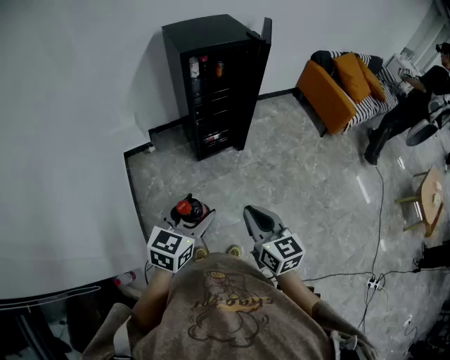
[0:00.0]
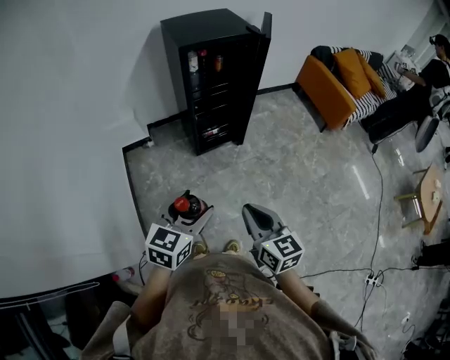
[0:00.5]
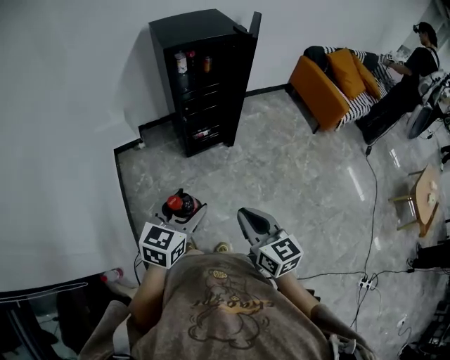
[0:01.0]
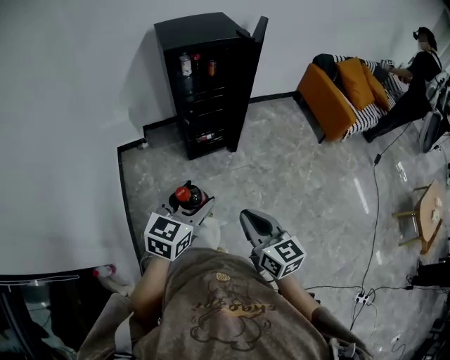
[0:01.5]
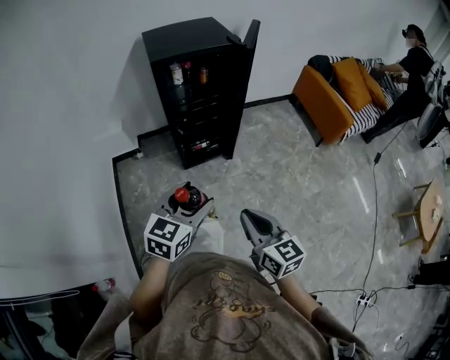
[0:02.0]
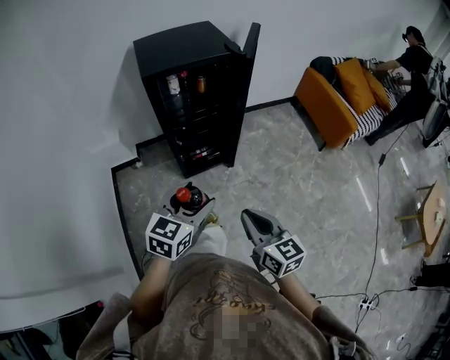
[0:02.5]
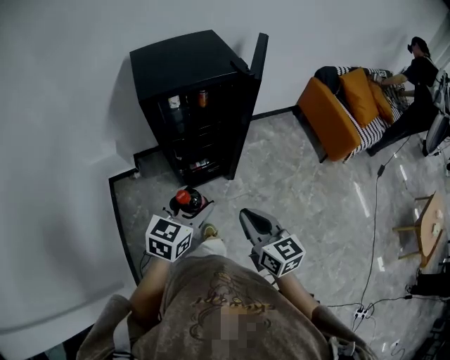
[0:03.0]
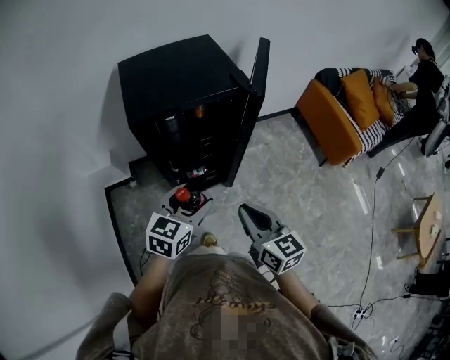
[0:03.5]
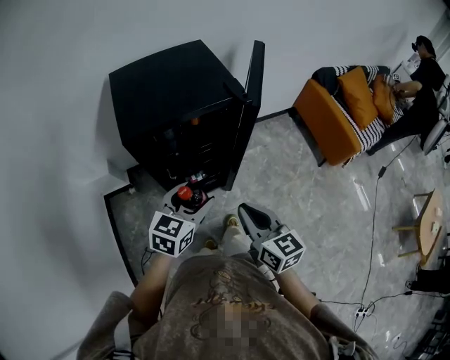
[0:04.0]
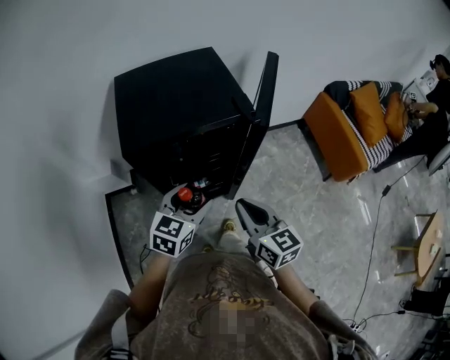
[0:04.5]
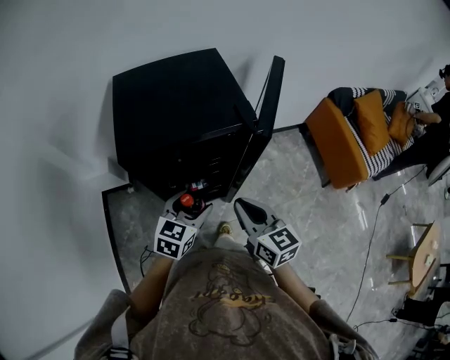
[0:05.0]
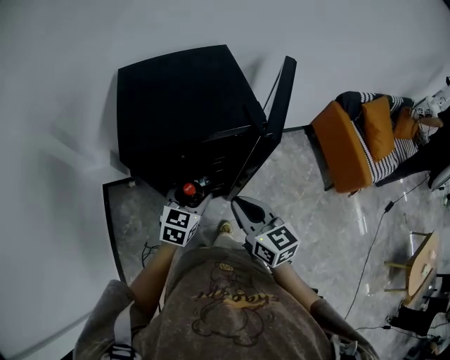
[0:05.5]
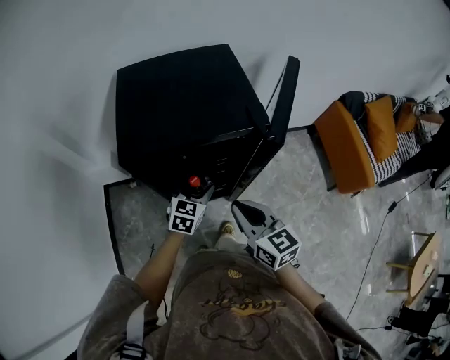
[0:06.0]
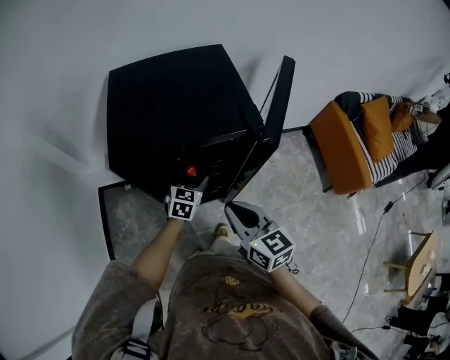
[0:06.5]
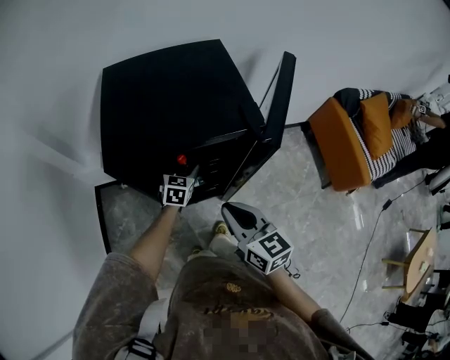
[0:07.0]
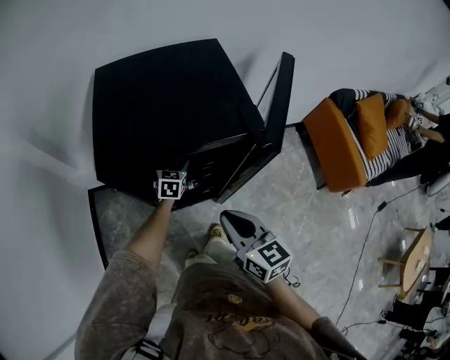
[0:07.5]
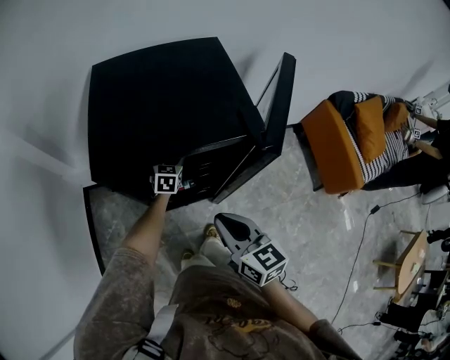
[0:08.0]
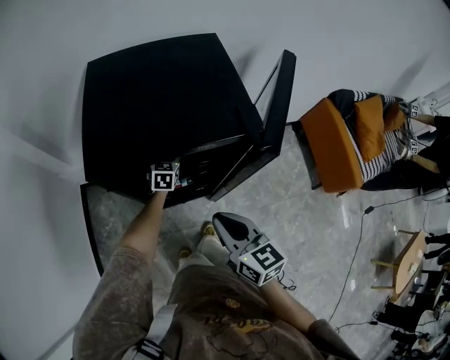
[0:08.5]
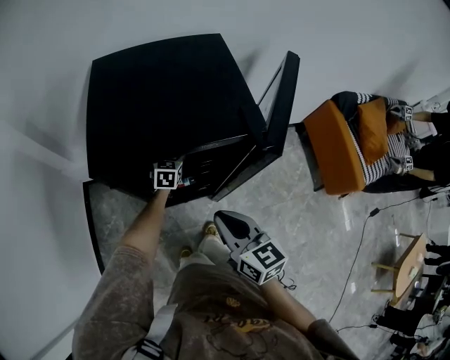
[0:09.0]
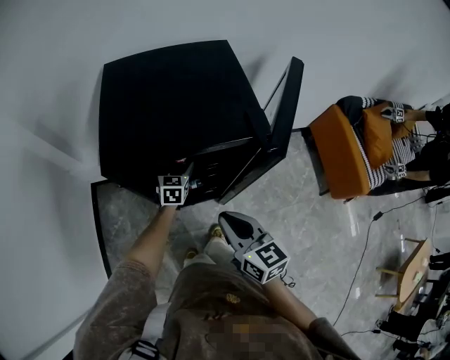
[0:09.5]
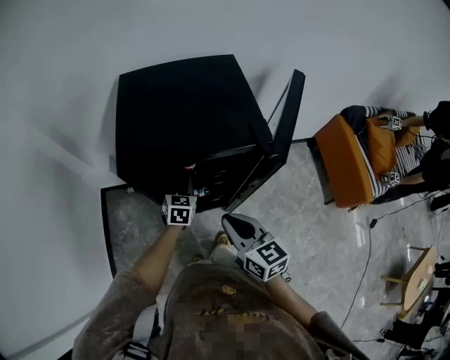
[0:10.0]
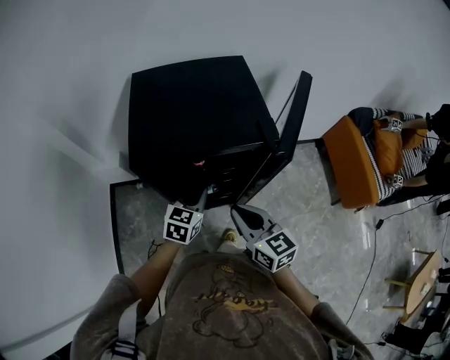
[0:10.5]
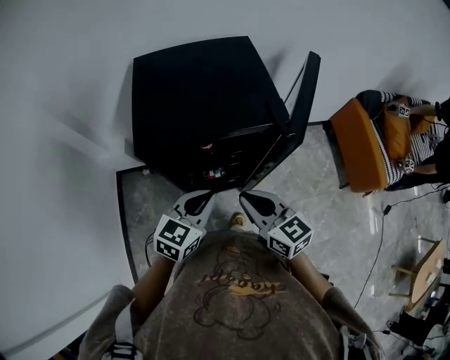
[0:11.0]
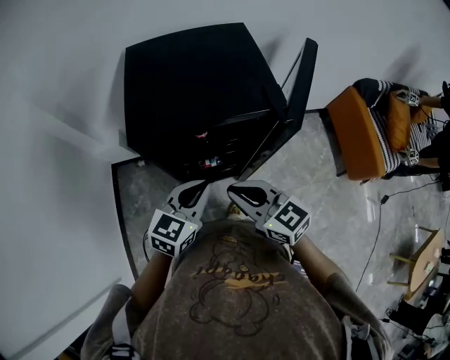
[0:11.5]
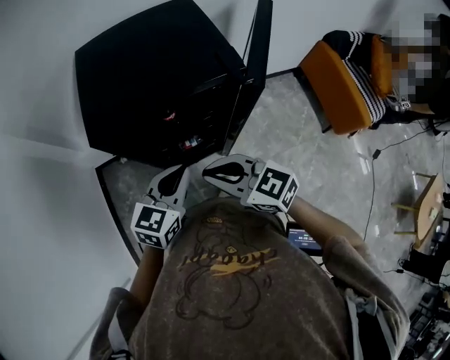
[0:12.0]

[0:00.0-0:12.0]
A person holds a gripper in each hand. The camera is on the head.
0:00.0 to 0:02.0: Both grippers move to the right and forward, about 15 cm.
0:02.0 to 0:04.0: The two grippers go roughly 35 cm forward.
0:04.0 to 0:06.0: The right gripper is displaced forward by about 15 cm; the left gripper heads forward and downward, covering roughly 20 cm.
0:06.0 to 0:08.0: The left gripper shifts approximately 20 cm forward and downward.
0:08.0 to 0:10.0: The left gripper travels backward by approximately 10 cm, and closes its fingers.
0:10.0 to 0:12.0: The left gripper heads upward and backward, covering about 25 cm, and rotates roughly 30 degrees, while the right gripper changes place by some 5 cm, and swivels about 30 degrees.

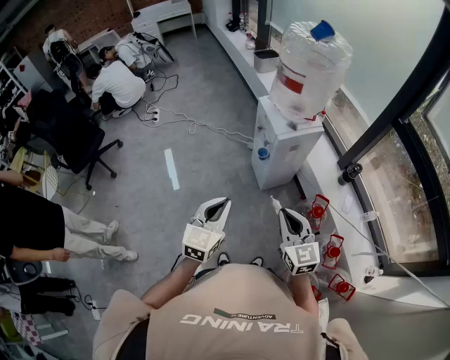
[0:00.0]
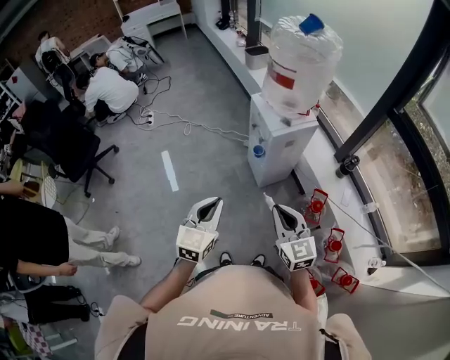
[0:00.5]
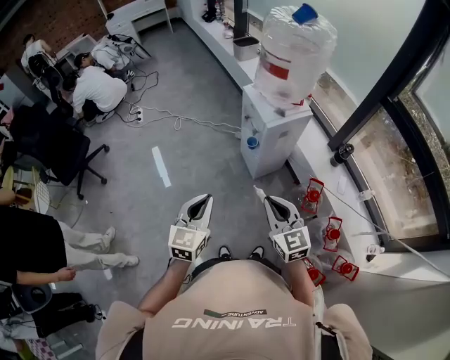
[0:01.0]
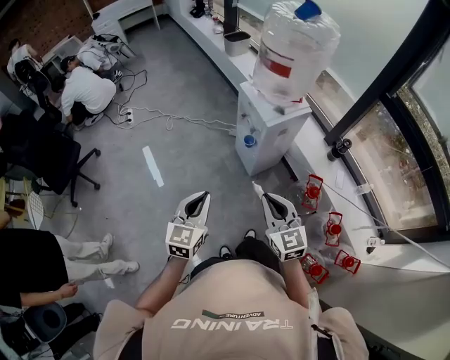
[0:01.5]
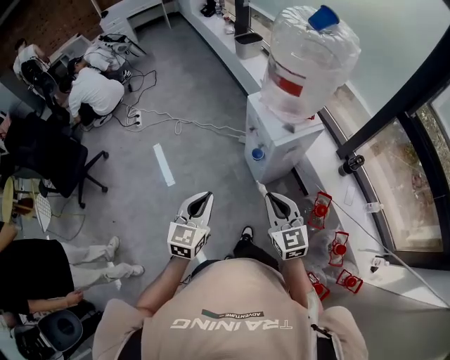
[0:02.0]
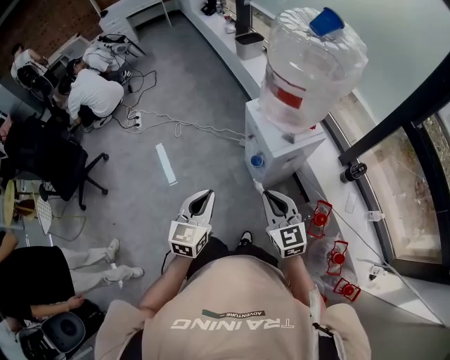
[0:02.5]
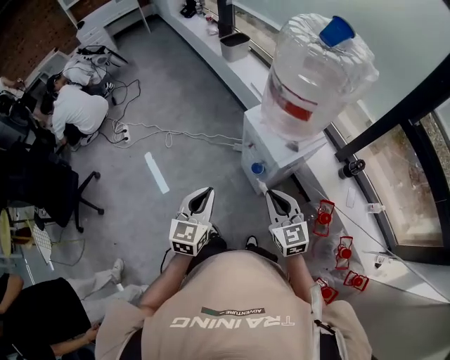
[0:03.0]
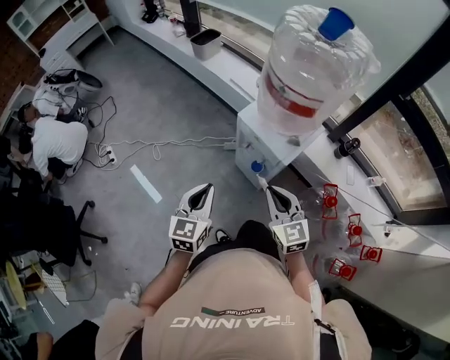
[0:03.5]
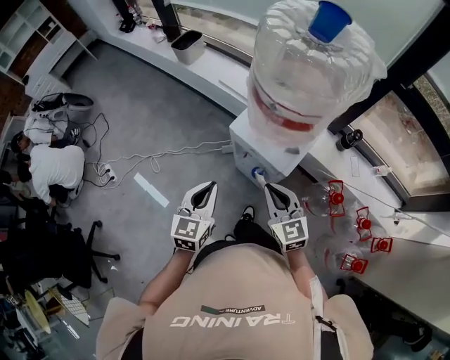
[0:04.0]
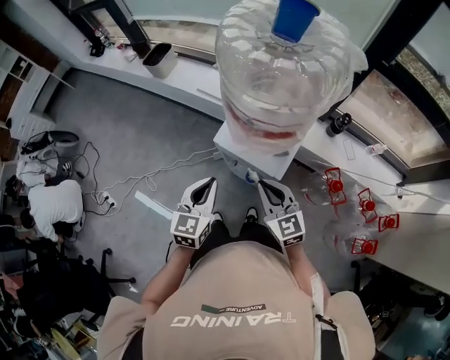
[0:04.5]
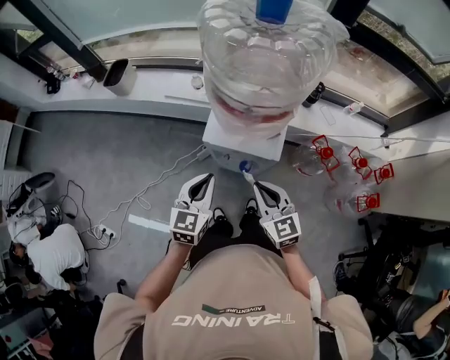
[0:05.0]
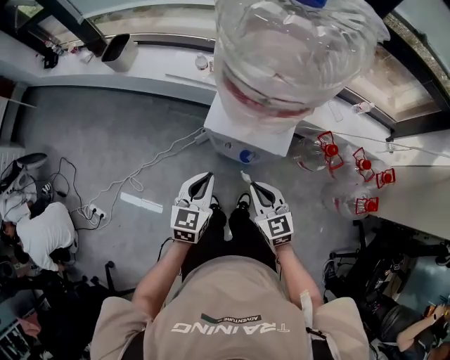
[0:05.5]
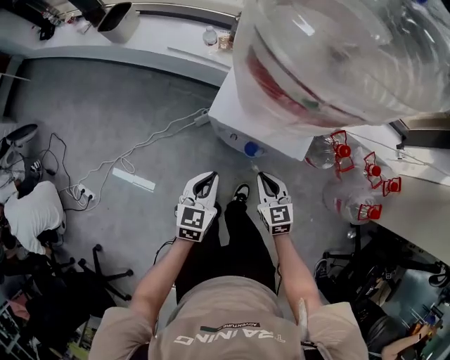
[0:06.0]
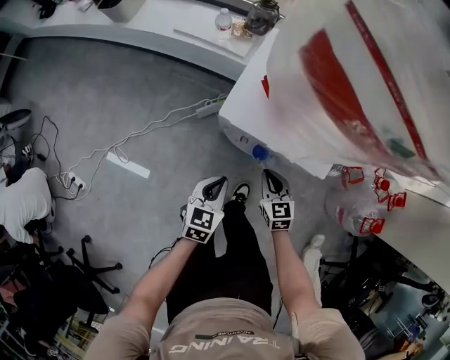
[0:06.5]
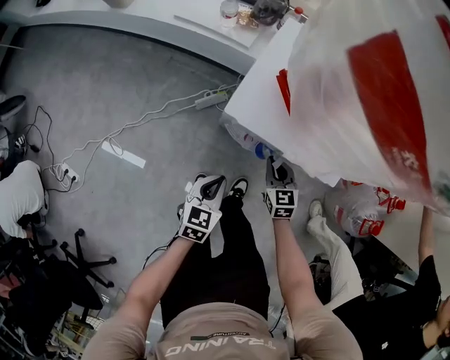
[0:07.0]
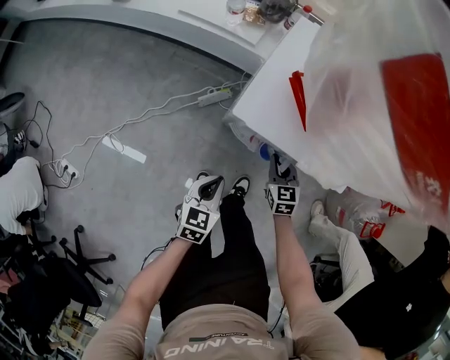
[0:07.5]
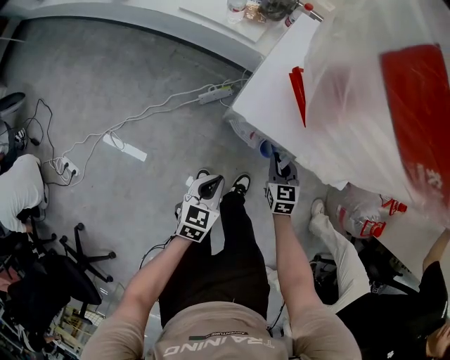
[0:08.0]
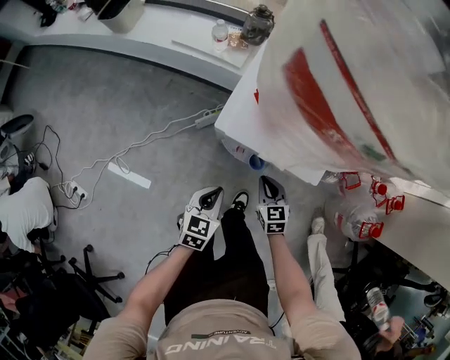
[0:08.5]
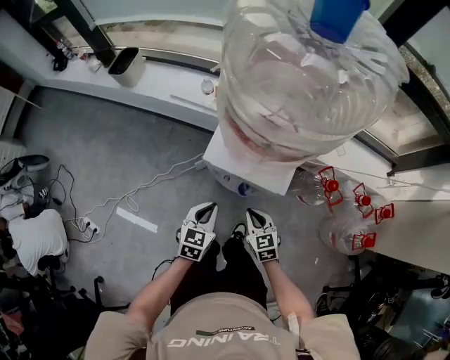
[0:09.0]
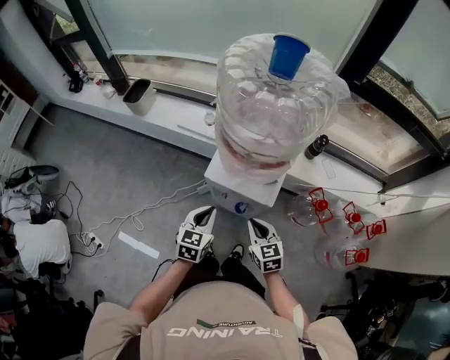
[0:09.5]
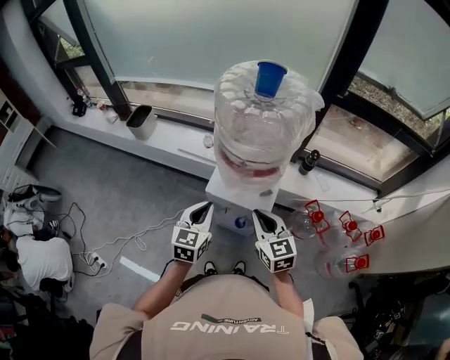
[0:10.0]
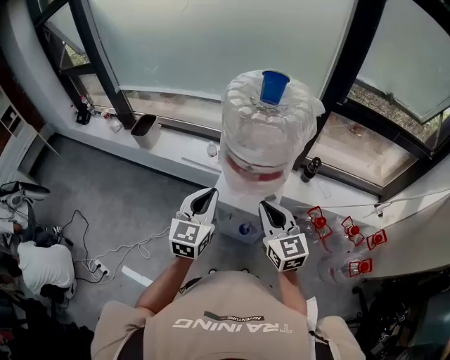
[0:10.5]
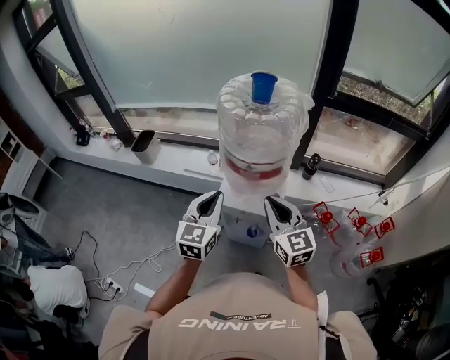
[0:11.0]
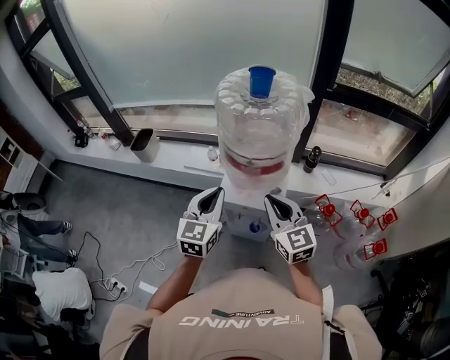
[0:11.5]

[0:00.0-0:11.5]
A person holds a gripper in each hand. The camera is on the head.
0:00.0 to 0:02.0: The two grippers go about 15 cm forward.
0:02.0 to 0:04.0: The left gripper ends up about 30 cm from where it was, and turns by some 20 degrees, while the right gripper shifts by roughly 25 cm, and changes its angle by some 20 degrees.
0:04.0 to 0:06.0: The grippers both shift downward by approximately 20 cm. The left gripper swivels some 20 degrees. Meanwhile the right gripper turns by some 30 degrees.
0:06.0 to 0:07.5: The left gripper moves downward, approximately 15 cm. Meanwhile the right gripper moves downward and forward, roughly 20 cm.
0:07.5 to 0:09.5: Both grippers move upward, roughly 30 cm.
0:09.5 to 0:11.5: The two grippers go some 20 cm upward. The left gripper swivels approximately 20 degrees. The right gripper swivels some 30 degrees.

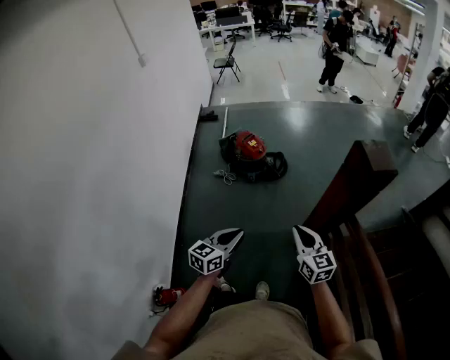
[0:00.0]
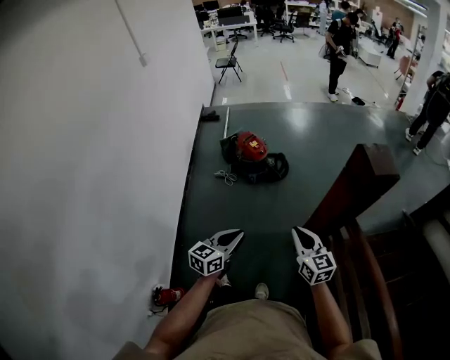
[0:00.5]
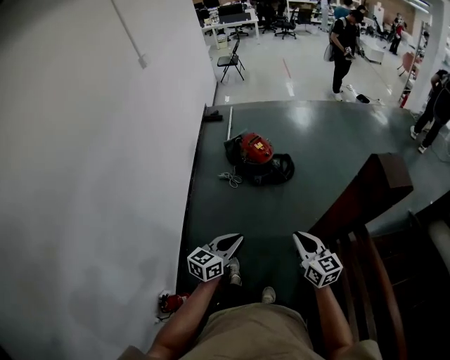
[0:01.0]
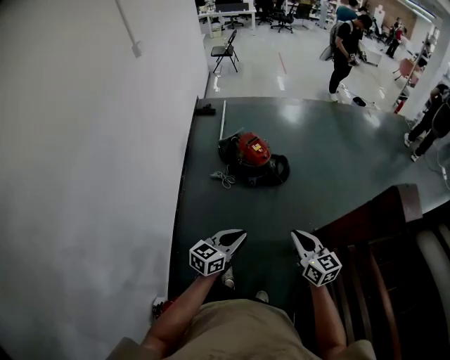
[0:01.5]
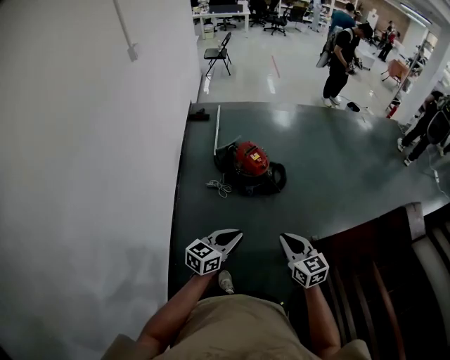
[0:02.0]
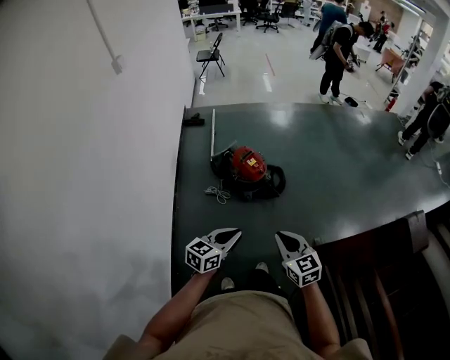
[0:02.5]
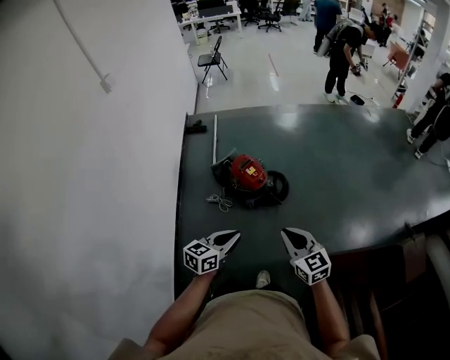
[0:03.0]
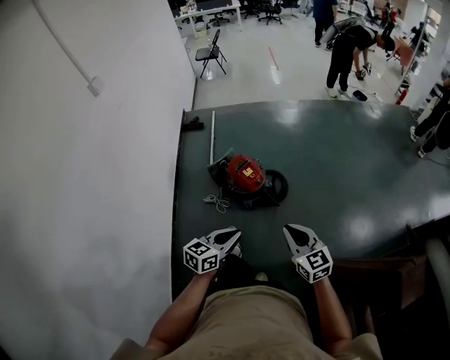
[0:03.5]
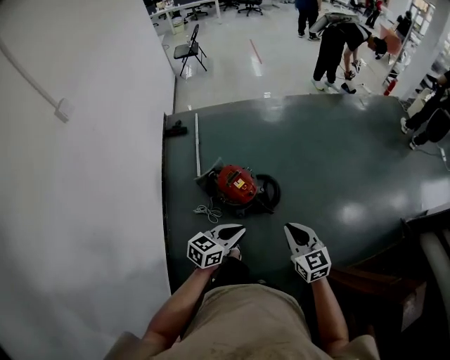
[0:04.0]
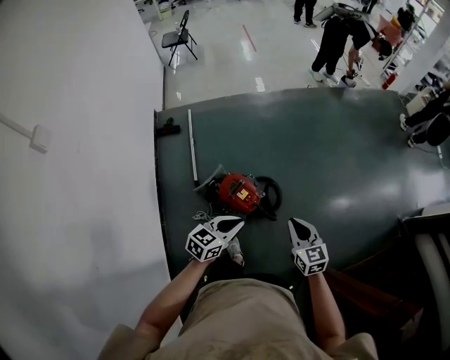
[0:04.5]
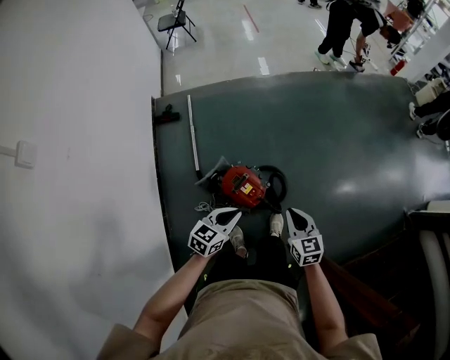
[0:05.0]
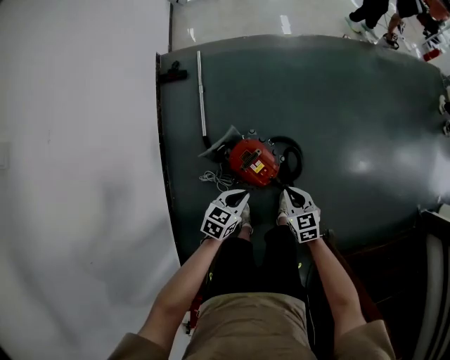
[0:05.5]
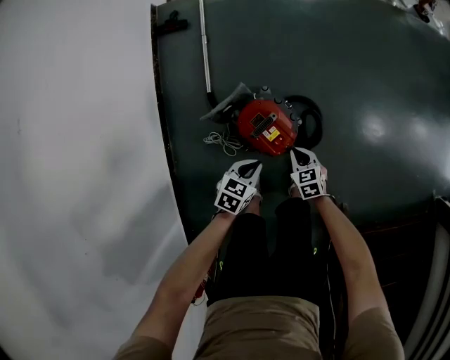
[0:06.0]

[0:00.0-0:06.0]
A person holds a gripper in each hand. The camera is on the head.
0:00.0 to 0:02.0: The right gripper goes roughly 30 cm to the left and forward, while the left gripper shifts approximately 30 cm forward and to the left.
0:02.0 to 0:04.0: The two grippers travel together, forward, roughly 40 cm.
0:04.0 to 0:06.0: The right gripper heads downward and forward, covering some 60 cm, and angles its fingers downward, by roughly 30 degrees; the left gripper travels downward, forward and to the left by approximately 50 cm, and rotates about 30 degrees.
